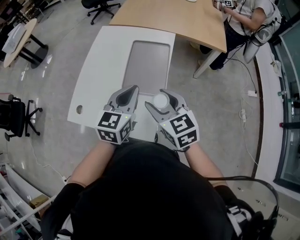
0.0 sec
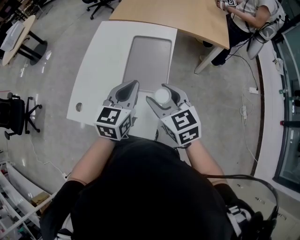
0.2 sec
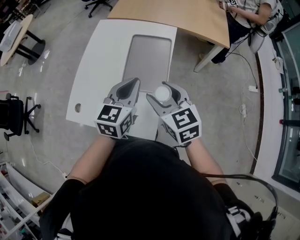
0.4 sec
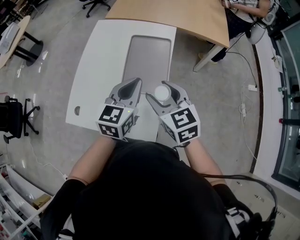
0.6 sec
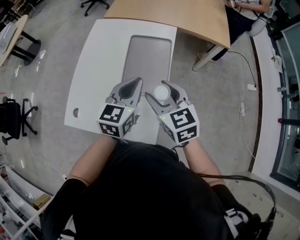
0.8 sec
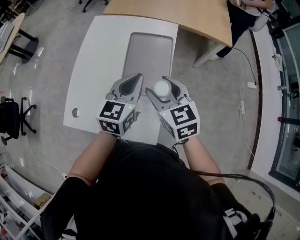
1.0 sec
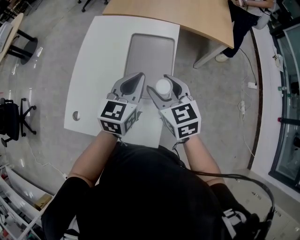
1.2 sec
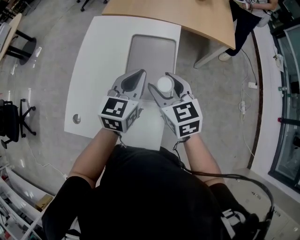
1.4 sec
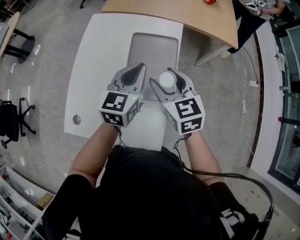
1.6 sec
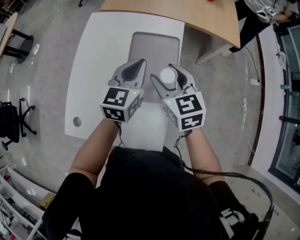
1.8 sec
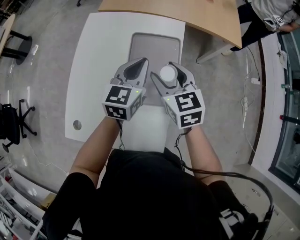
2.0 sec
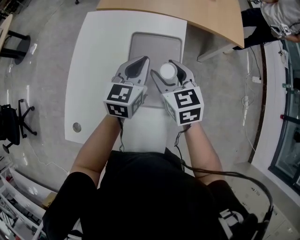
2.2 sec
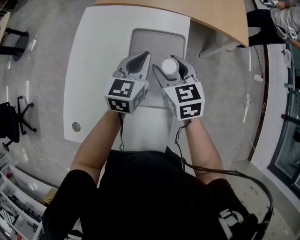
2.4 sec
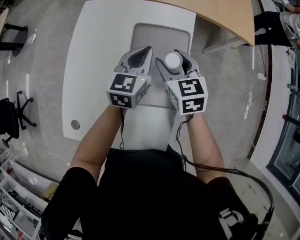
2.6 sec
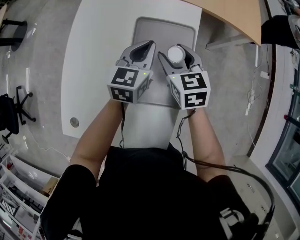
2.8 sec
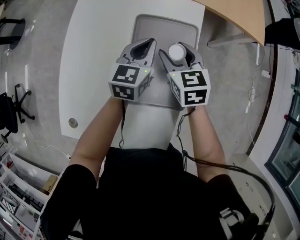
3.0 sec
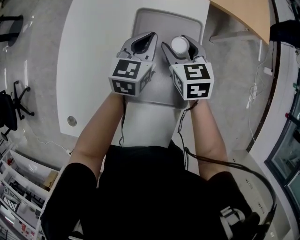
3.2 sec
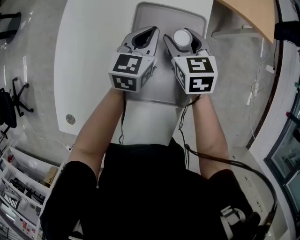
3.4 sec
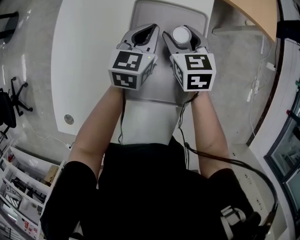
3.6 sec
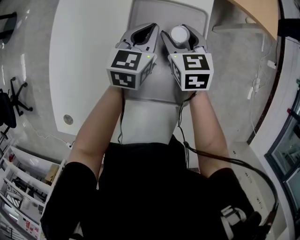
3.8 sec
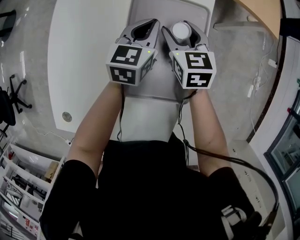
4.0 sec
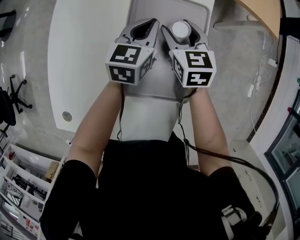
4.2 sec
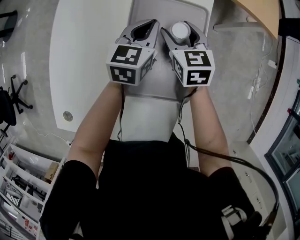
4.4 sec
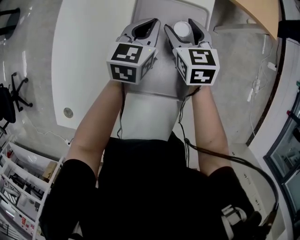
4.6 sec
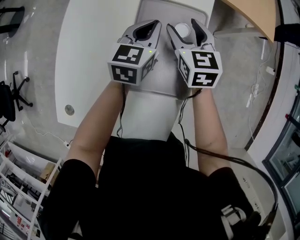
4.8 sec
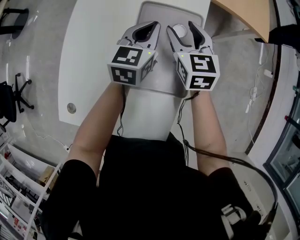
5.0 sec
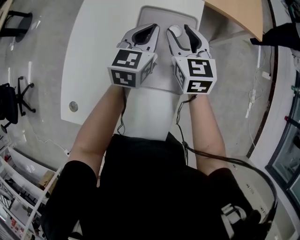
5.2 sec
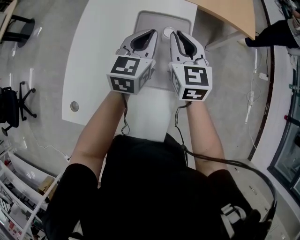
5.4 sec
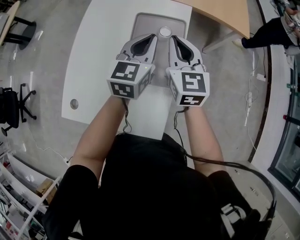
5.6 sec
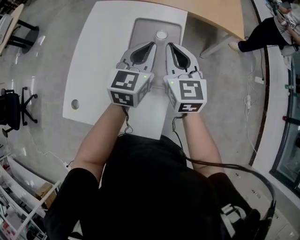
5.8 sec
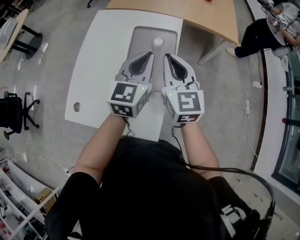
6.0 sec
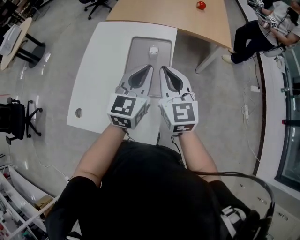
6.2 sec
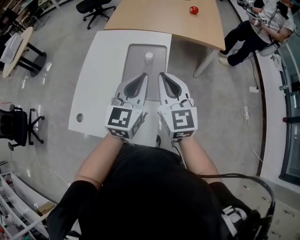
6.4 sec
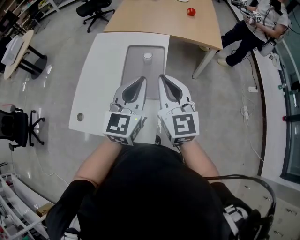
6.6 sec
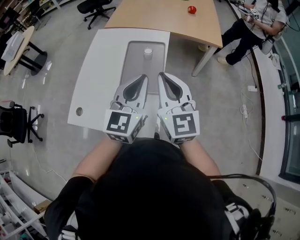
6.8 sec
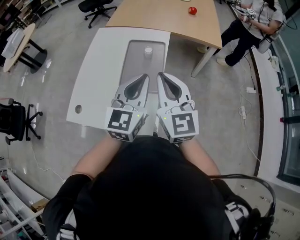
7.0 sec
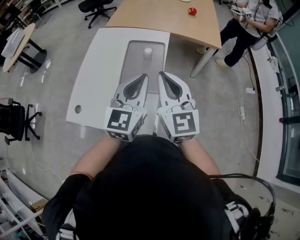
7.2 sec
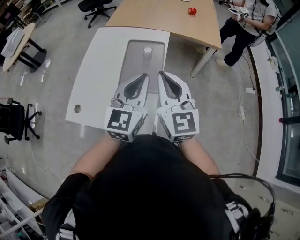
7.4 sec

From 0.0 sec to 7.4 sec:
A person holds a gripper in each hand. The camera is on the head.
From 0.0 sec to 1.4 sec: The grippers both shift forward by approximately 15 cm.
From 1.4 sec to 3.0 sec: Both grippers move forward and downward, about 25 cm.
From 3.0 sec to 4.4 sec: The two grippers go some 5 cm downward.
From 4.4 sec to 6.0 sec: Both grippers move upward and backward, approximately 35 cm. The right gripper turns by about 30 degrees, and closes.
From 6.0 sec to 7.4 sec: Both grippers travel together backward and upward, about 15 cm.

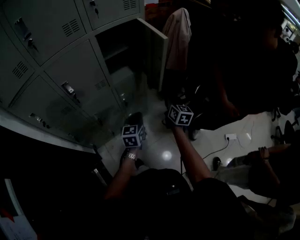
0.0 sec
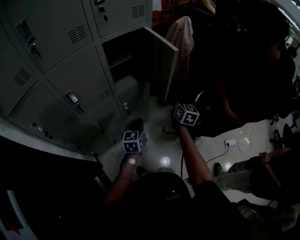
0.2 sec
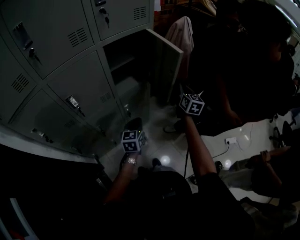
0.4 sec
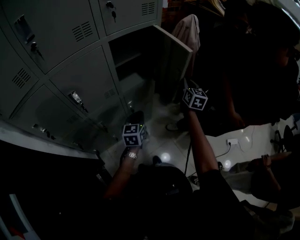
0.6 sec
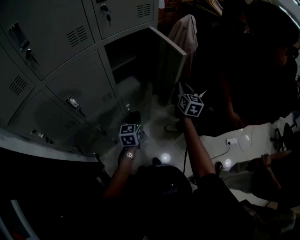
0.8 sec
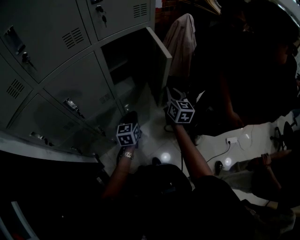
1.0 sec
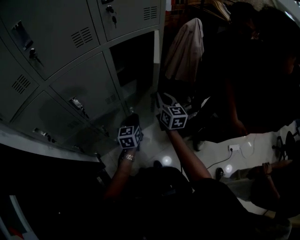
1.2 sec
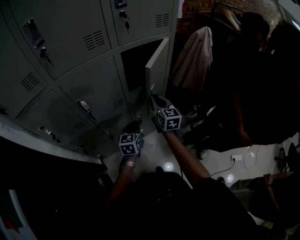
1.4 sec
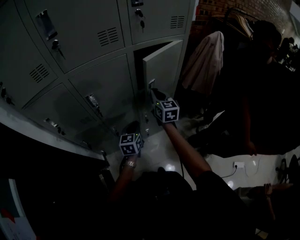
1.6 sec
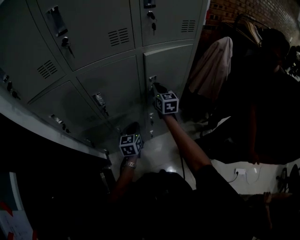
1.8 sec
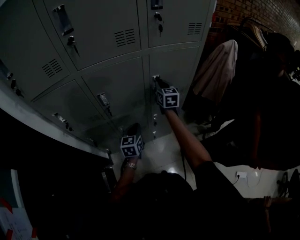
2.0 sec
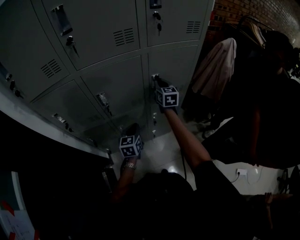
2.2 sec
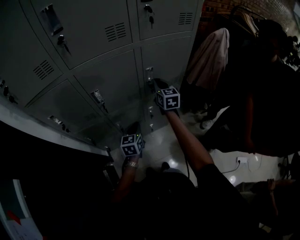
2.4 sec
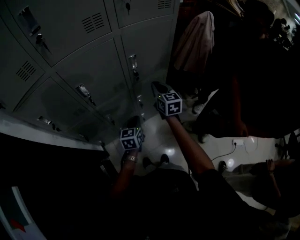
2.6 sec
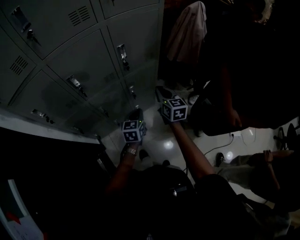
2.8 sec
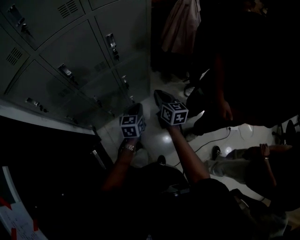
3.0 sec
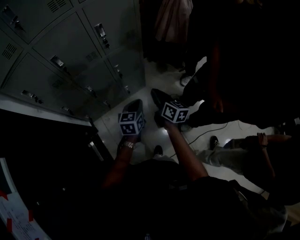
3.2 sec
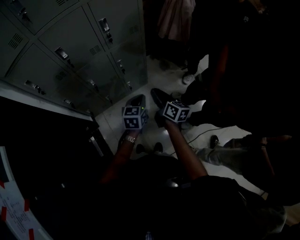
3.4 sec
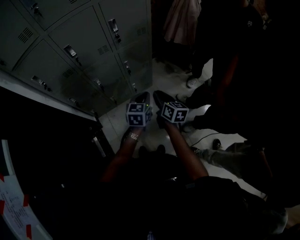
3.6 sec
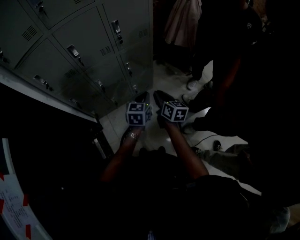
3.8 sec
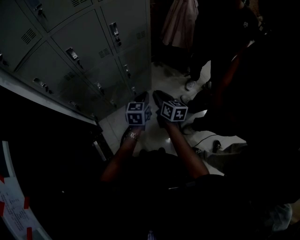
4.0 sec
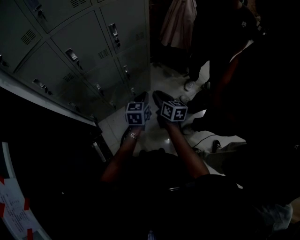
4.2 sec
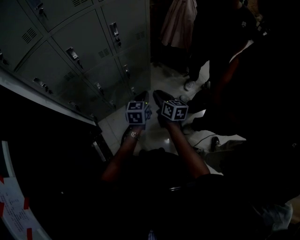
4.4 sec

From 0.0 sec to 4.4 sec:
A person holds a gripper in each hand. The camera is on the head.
From 0.0 sec to 1.4 sec: The grippers both shift to the left and forward by approximately 20 cm.
From 1.4 sec to 3.0 sec: The right gripper heads backward, downward and to the right, covering approximately 25 cm, while the left gripper is displaced backward and to the right by some 15 cm.
From 3.0 sec to 4.4 sec: Both grippers move backward, approximately 10 cm.

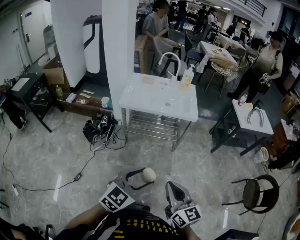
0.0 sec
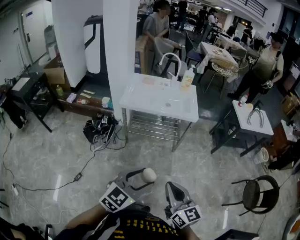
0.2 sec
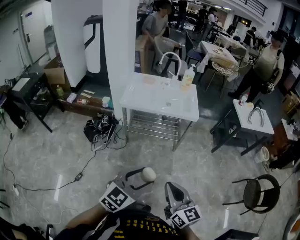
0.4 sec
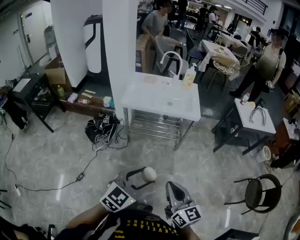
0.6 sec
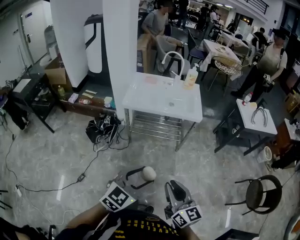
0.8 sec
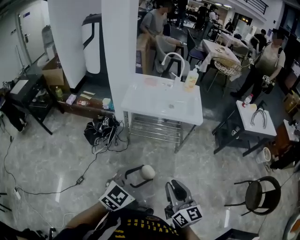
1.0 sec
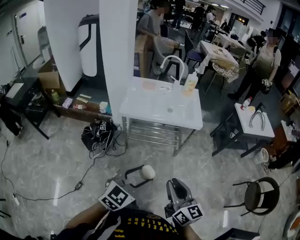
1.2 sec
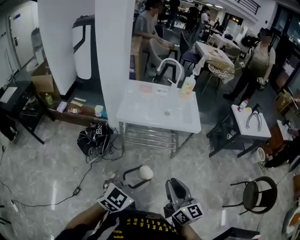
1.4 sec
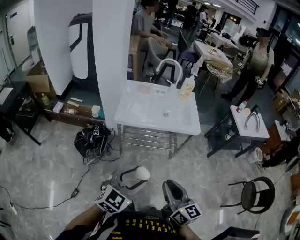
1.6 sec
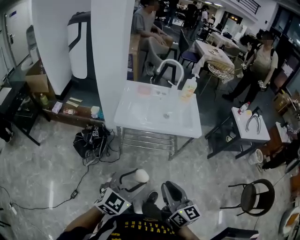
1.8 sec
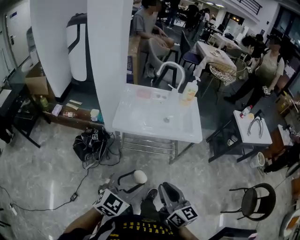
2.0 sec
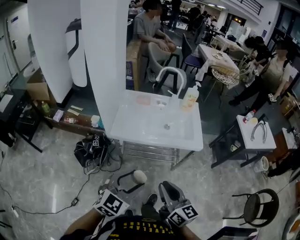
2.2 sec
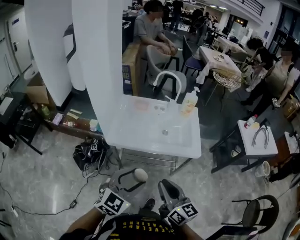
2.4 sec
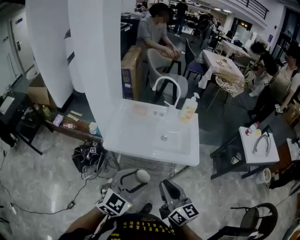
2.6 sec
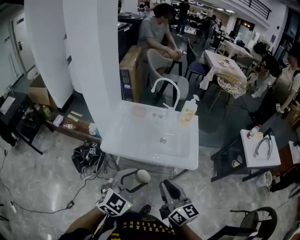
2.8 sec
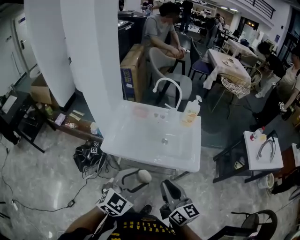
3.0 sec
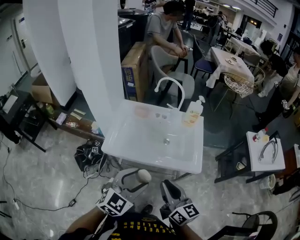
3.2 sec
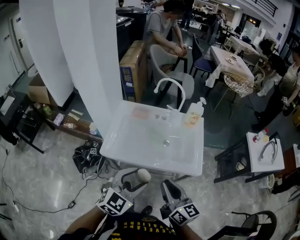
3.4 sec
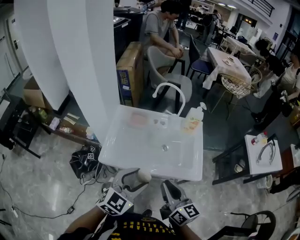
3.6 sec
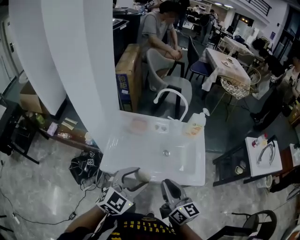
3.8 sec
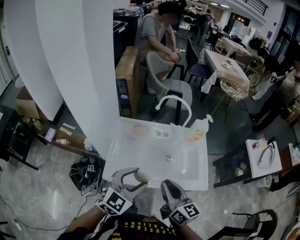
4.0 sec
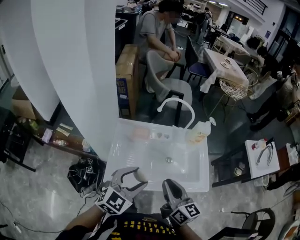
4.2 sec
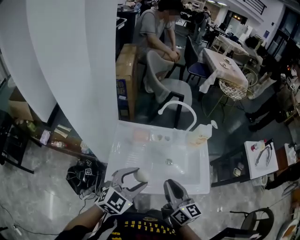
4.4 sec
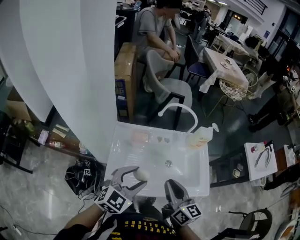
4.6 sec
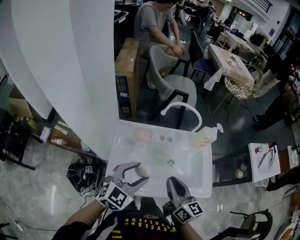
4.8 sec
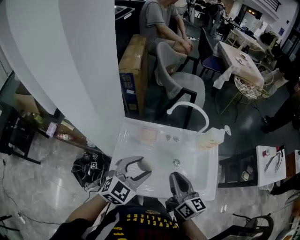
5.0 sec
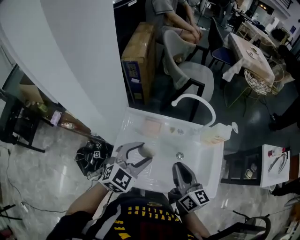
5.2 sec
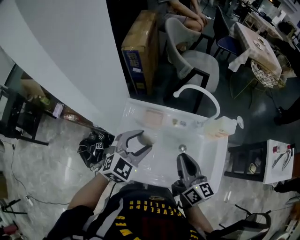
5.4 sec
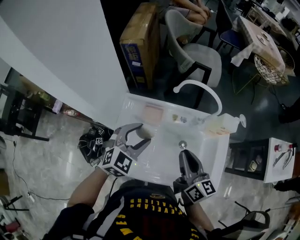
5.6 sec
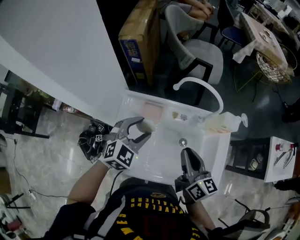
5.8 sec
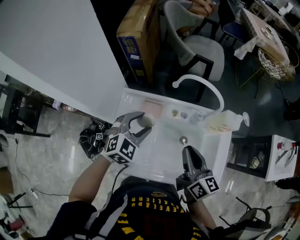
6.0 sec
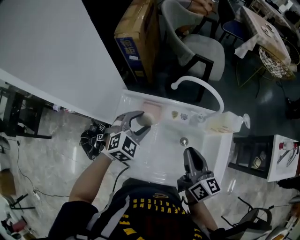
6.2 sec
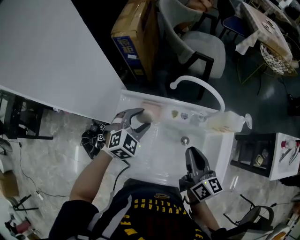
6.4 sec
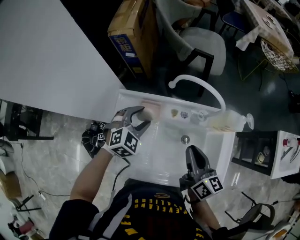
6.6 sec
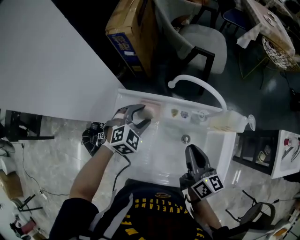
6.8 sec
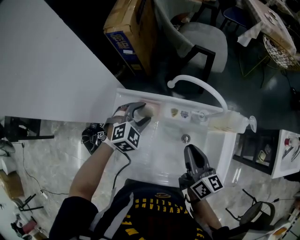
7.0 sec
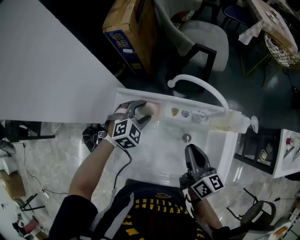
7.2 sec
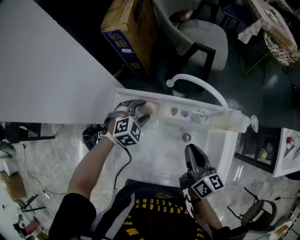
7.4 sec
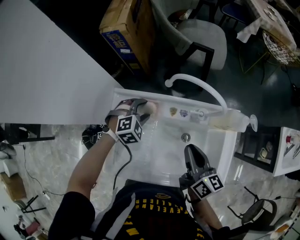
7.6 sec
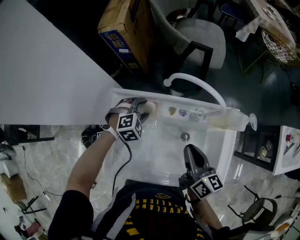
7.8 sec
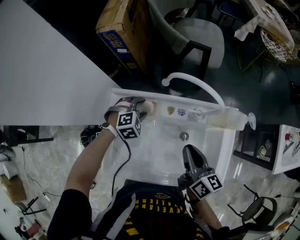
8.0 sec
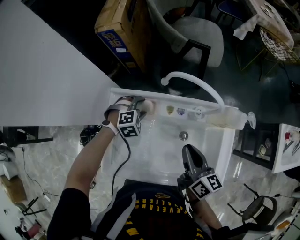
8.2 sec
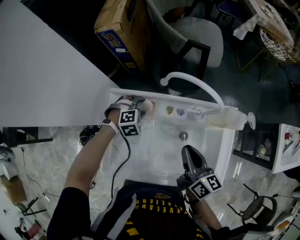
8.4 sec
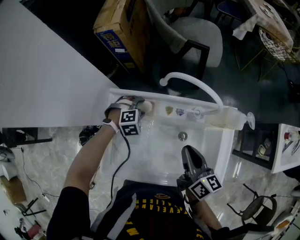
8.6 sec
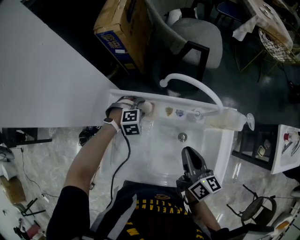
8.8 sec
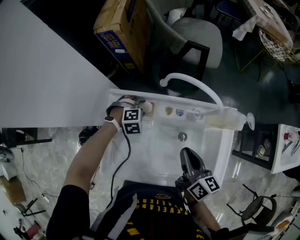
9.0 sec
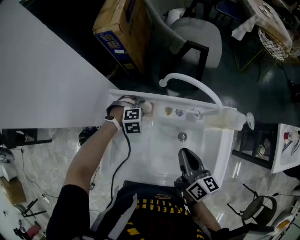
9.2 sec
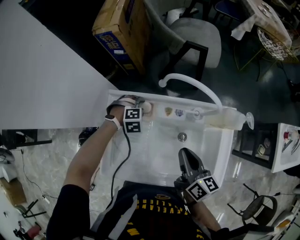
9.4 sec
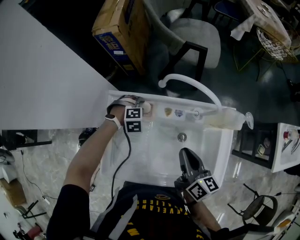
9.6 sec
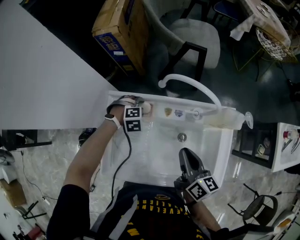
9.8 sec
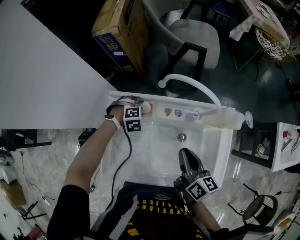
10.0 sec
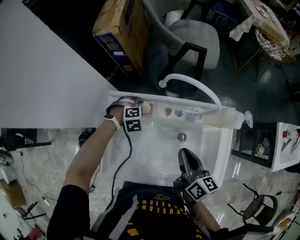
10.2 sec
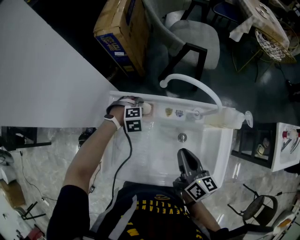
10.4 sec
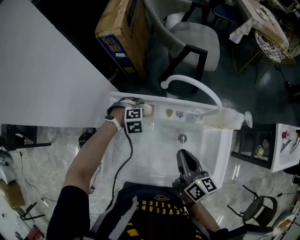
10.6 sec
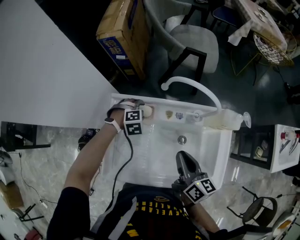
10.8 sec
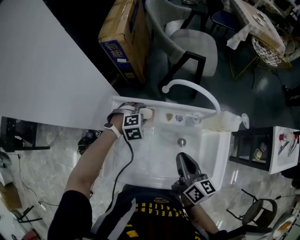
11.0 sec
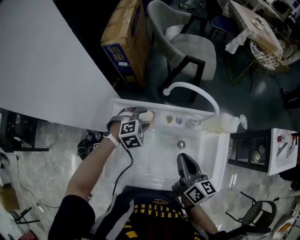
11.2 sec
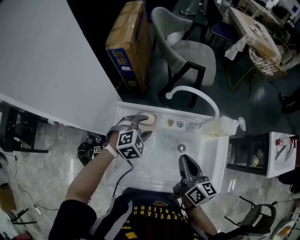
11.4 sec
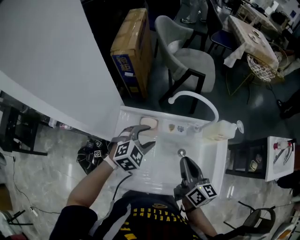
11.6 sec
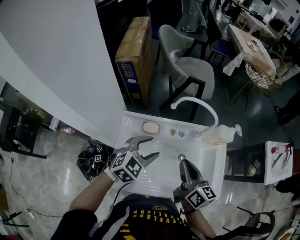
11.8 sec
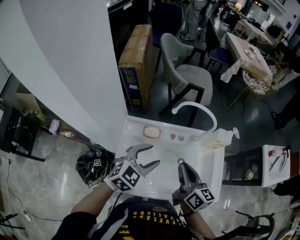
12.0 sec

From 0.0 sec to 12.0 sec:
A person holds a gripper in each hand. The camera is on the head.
From 0.0 sec to 1.6 sec: The grippers both shift forward and to the left by about 20 cm.
From 1.6 sec to 3.0 sec: Both grippers travel together forward, about 30 cm.
From 3.0 sec to 4.4 sec: The two grippers go about 25 cm forward and to the left.
From 4.4 sec to 6.0 sec: The right gripper shifts approximately 15 cm forward; the left gripper heads forward and downward, covering approximately 25 cm, and rotates some 20 degrees.
From 6.0 sec to 7.6 sec: The left gripper shifts some 15 cm downward and forward, and swivels some 20 degrees. Meanwhile the right gripper is displaced downward by approximately 5 cm.
From 7.6 sec to 9.0 sec: The left gripper shifts approximately 5 cm downward.
From 9.0 sec to 10.4 sec: There are only small adjustments of the grippers.
From 10.4 sec to 12.0 sec: The right gripper travels upward by roughly 10 cm. The left gripper goes about 25 cm upward, and angles its fingers upward, by approximately 50 degrees.
